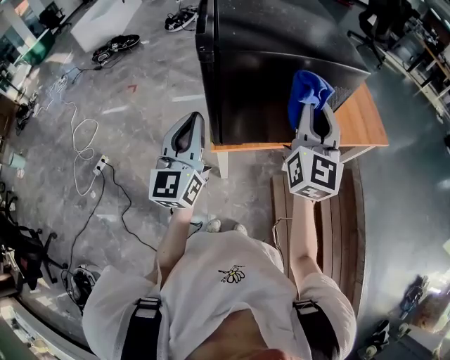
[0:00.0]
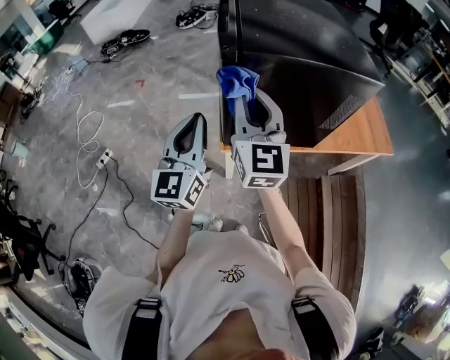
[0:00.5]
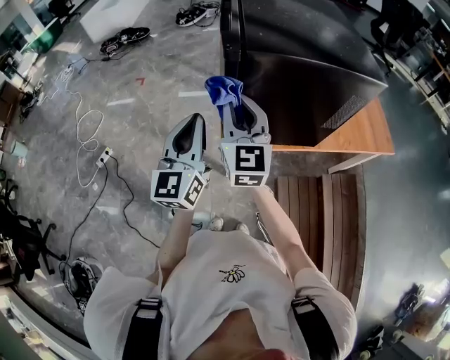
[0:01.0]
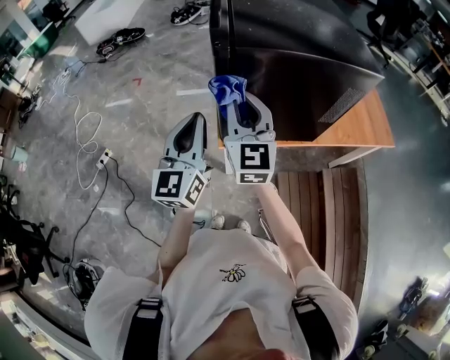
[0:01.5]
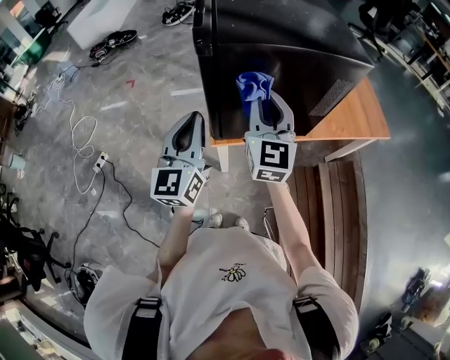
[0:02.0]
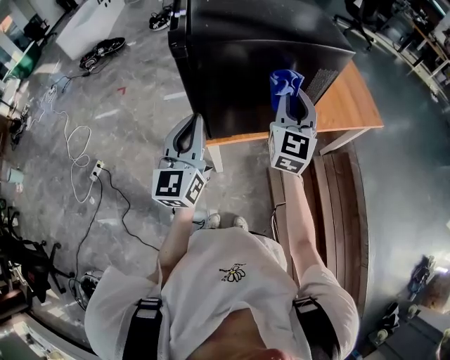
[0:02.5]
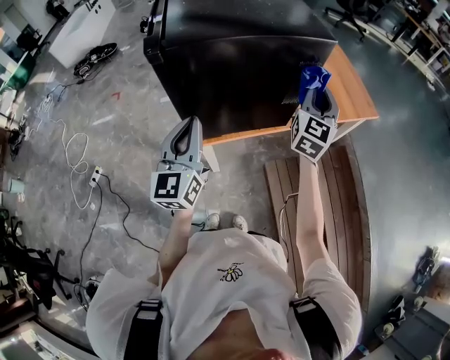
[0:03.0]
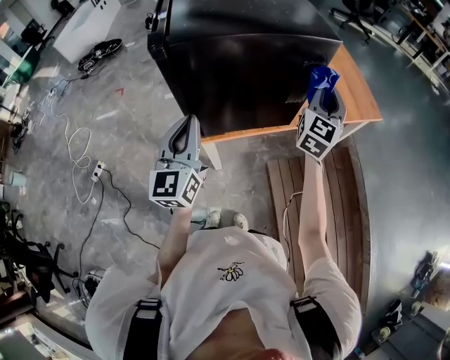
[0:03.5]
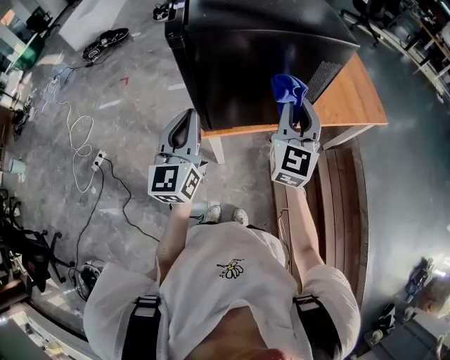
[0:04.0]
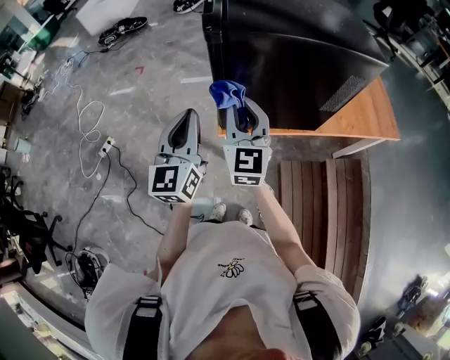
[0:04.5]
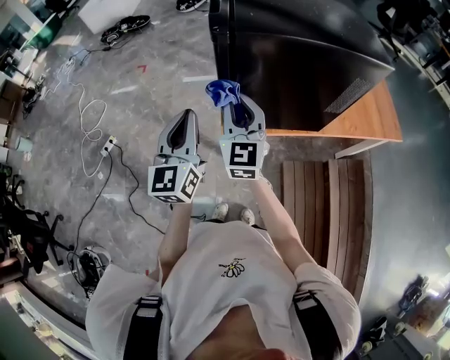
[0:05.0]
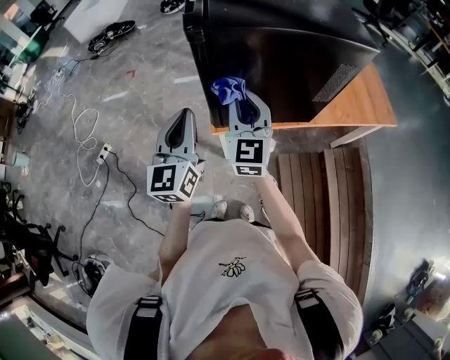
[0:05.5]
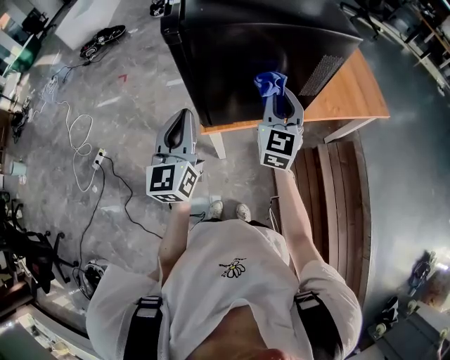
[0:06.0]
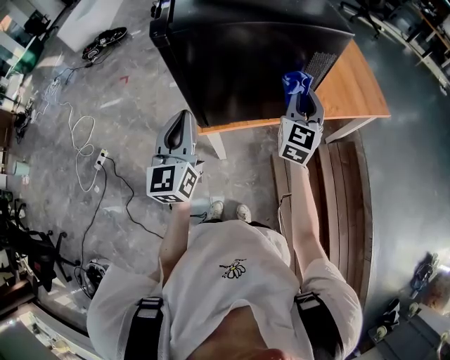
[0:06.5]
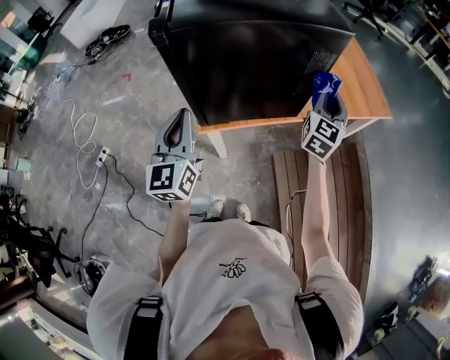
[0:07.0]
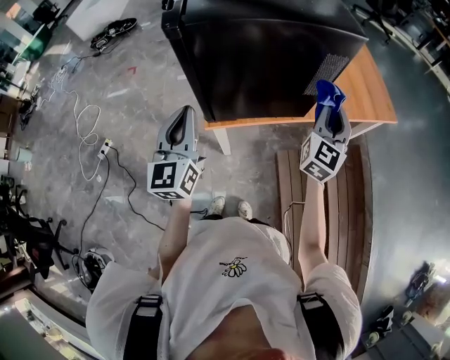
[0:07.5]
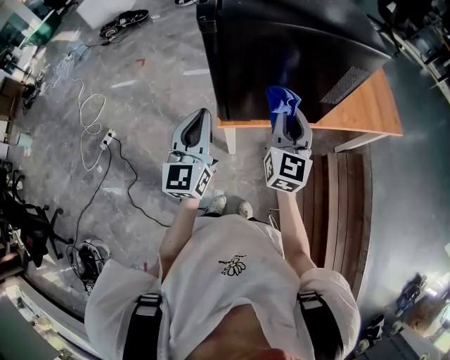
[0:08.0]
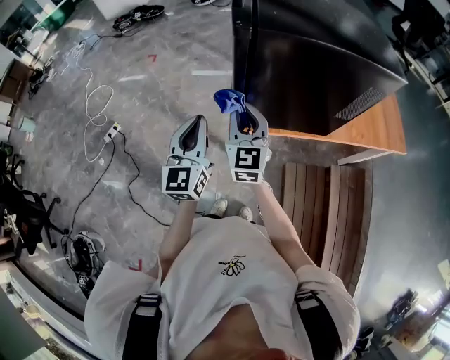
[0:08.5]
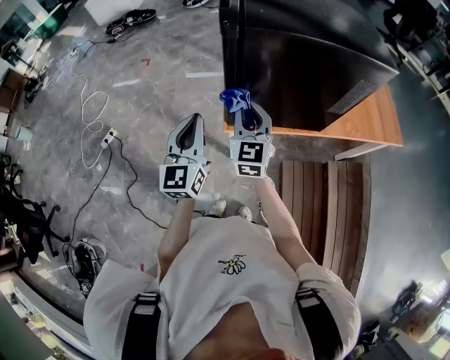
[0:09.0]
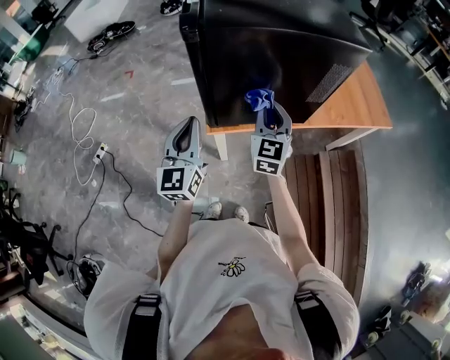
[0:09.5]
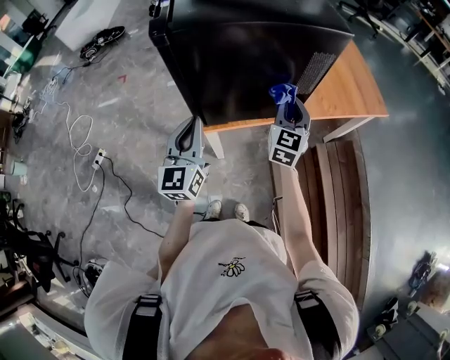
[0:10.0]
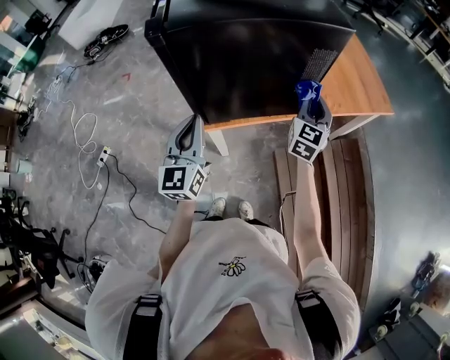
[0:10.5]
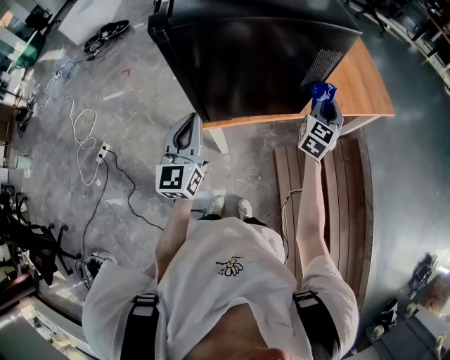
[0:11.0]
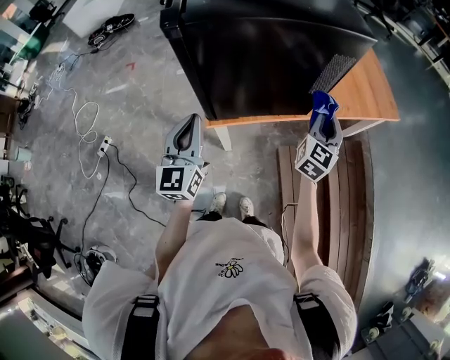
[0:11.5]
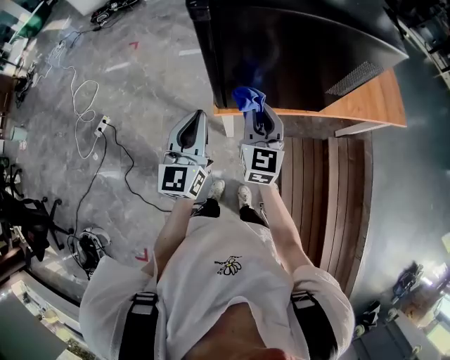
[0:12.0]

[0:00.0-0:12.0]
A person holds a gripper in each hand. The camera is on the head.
0:00.0 to 0:02.0: The right gripper is displaced to the left and downward by some 10 cm.
0:02.0 to 0:04.0: The right gripper heads to the right, covering about 15 cm.
0:04.0 to 0:06.0: The left gripper moves some 10 cm to the left and comes back; the right gripper goes to the left and returns, some 20 cm each way.
0:06.0 to 0:08.0: The right gripper moves roughly 20 cm to the right and comes back.
0:08.0 to 0:10.0: The left gripper ends up approximately 5 cm from where it was. The right gripper heads to the right, forward and downward, covering some 15 cm.
0:10.0 to 0:12.0: The right gripper shifts roughly 20 cm to the left and backward, and changes its angle by about 20 degrees. The left gripper moves approximately 5 cm.

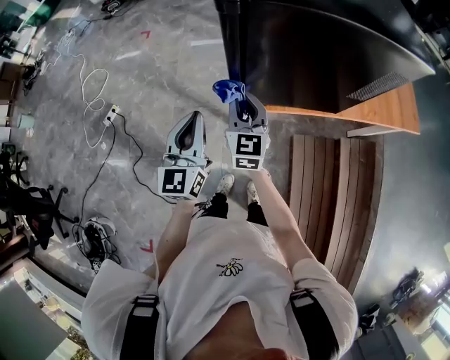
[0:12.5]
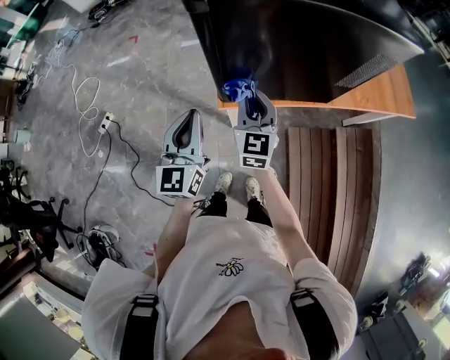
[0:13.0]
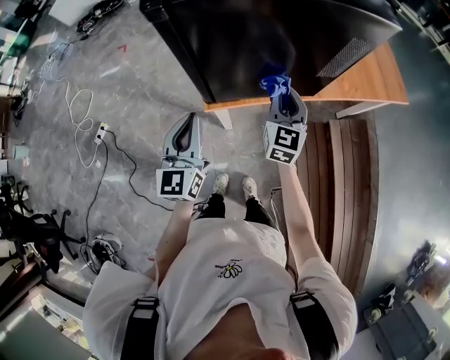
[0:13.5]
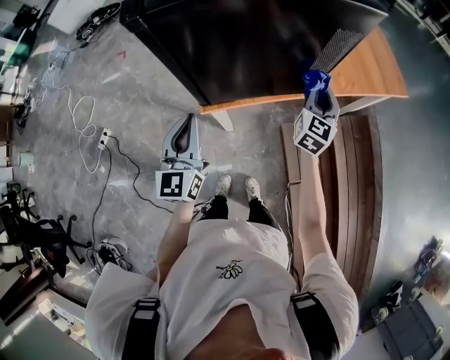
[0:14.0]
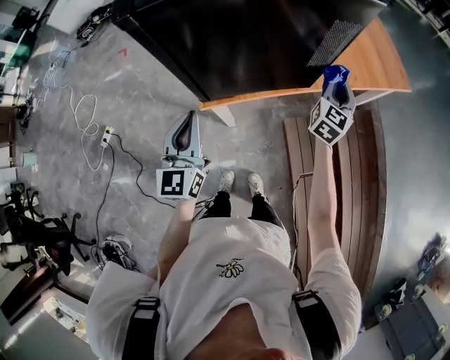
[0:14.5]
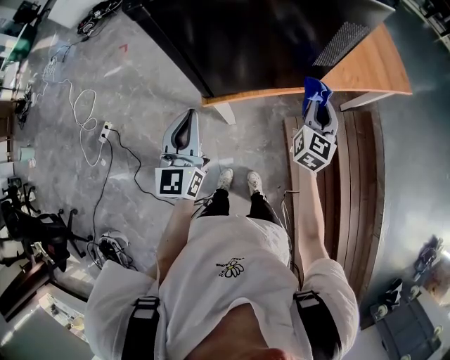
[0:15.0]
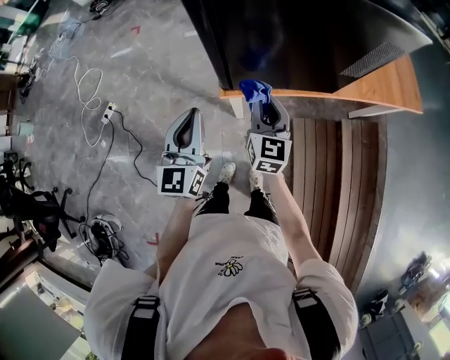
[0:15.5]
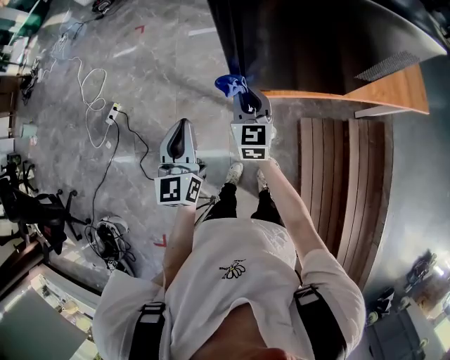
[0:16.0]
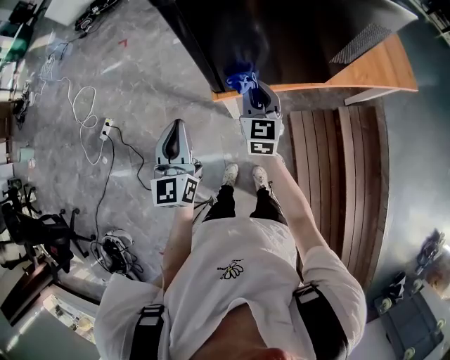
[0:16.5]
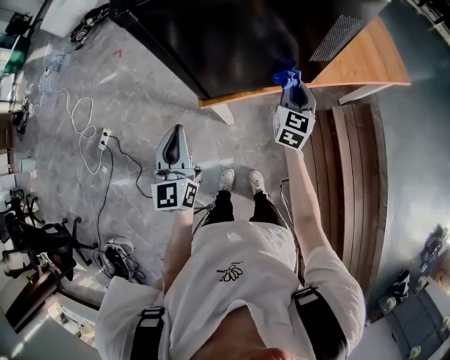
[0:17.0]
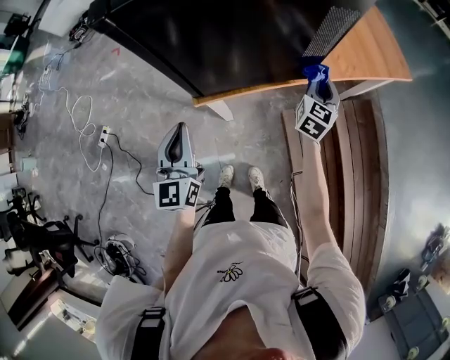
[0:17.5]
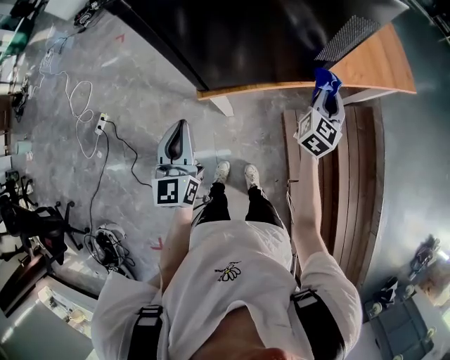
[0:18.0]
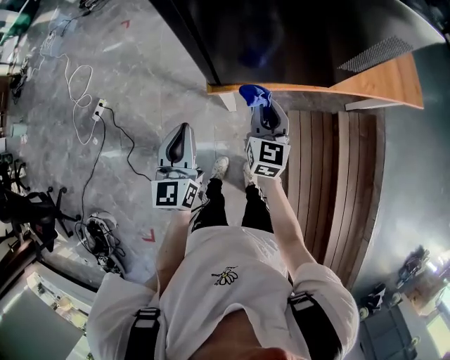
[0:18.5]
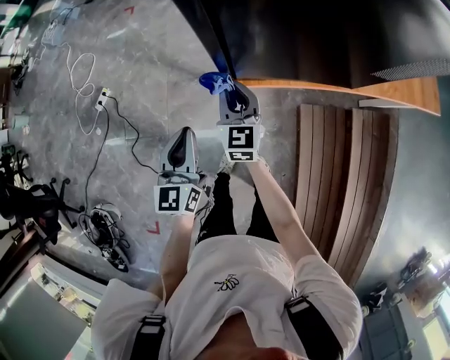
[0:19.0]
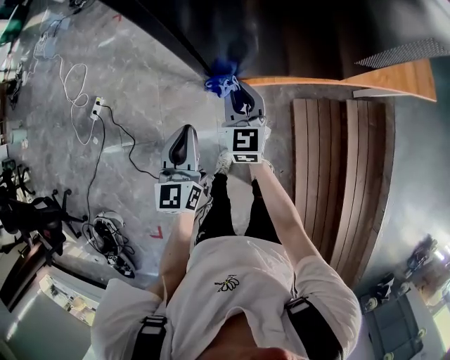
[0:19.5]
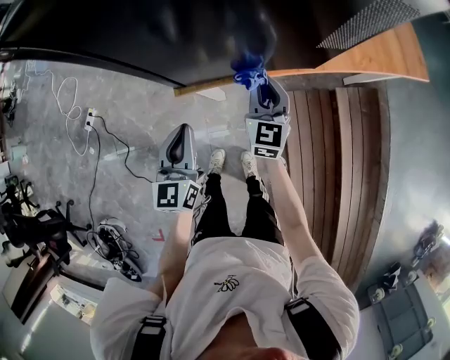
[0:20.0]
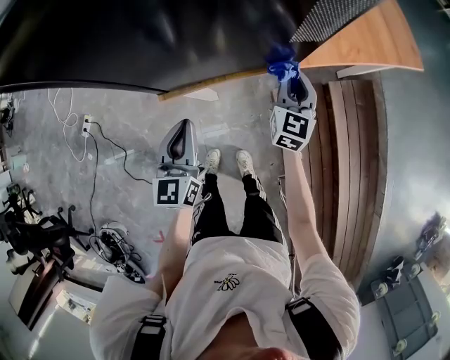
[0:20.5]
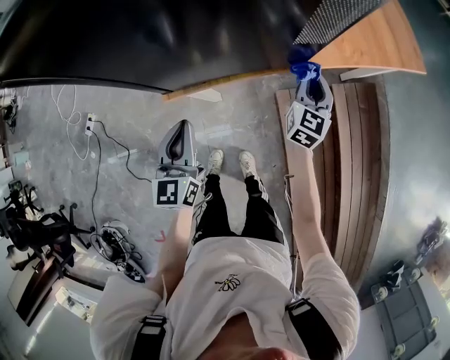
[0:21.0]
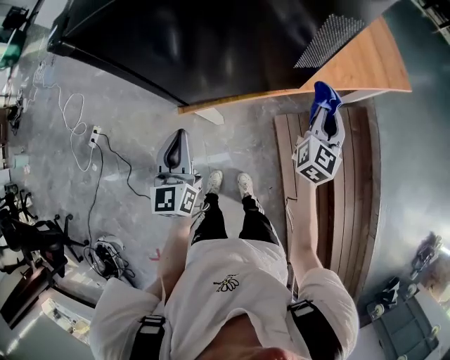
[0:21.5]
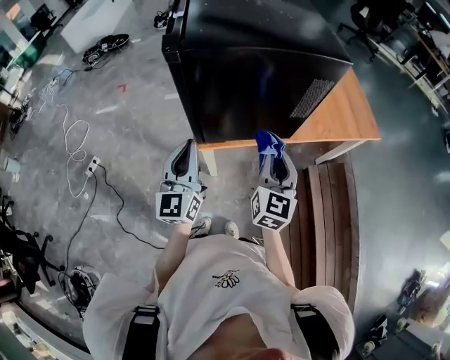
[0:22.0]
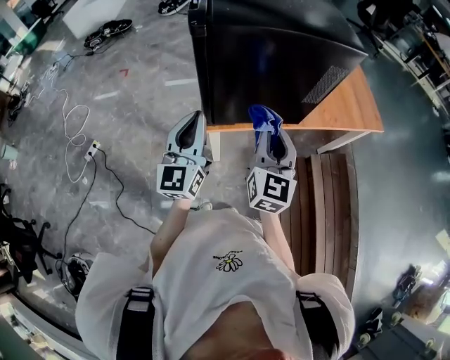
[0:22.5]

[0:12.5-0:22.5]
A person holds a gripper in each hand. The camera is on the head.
0:12.5 to 0:14.5: The left gripper shifts by some 10 cm; the right gripper moves about 40 cm, and rotates about 40 degrees.
0:14.5 to 0:16.5: The left gripper ends up about 10 cm from where it was; the right gripper shifts by about 30 cm, and rotates some 30 degrees.
0:16.5 to 0:18.5: The left gripper changes place by approximately 5 cm. The right gripper moves about 30 cm to the right and comes back.
0:18.5 to 0:20.5: The left gripper goes some 15 cm to the right and downward. Meanwhile the right gripper is displaced to the right by roughly 20 cm.
0:20.5 to 0:22.5: The right gripper is displaced upward, backward and to the left by roughly 35 cm, while the left gripper travels upward by about 20 cm, and swivels about 20 degrees.

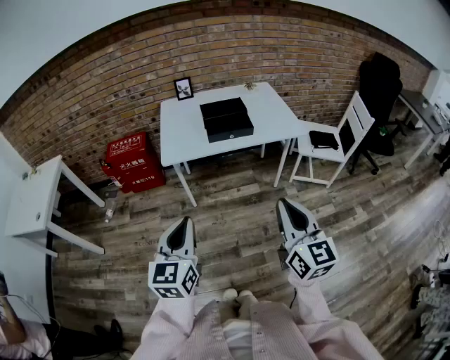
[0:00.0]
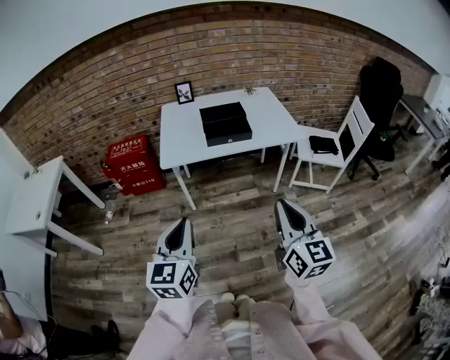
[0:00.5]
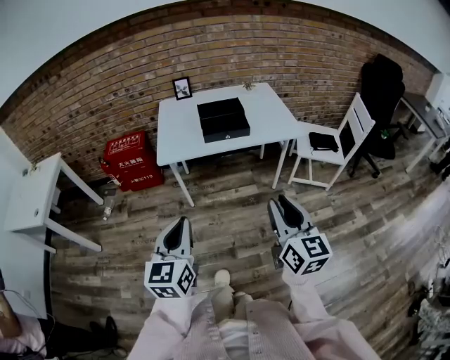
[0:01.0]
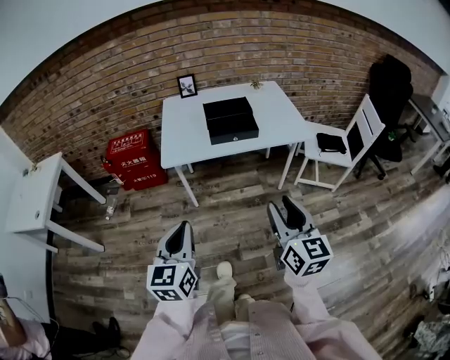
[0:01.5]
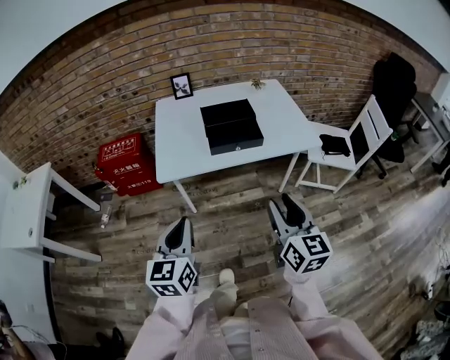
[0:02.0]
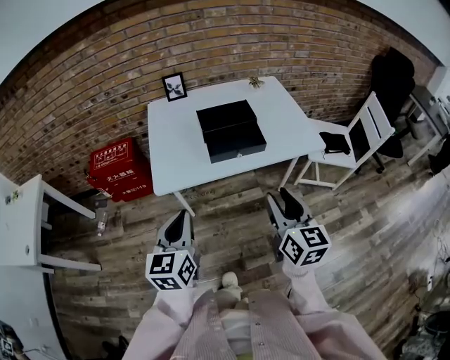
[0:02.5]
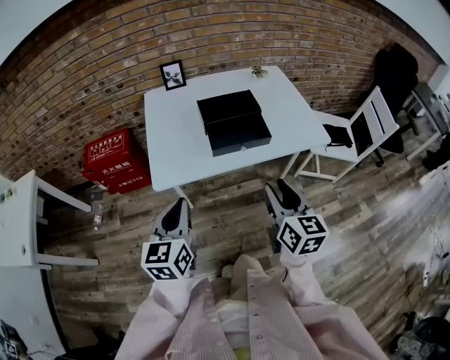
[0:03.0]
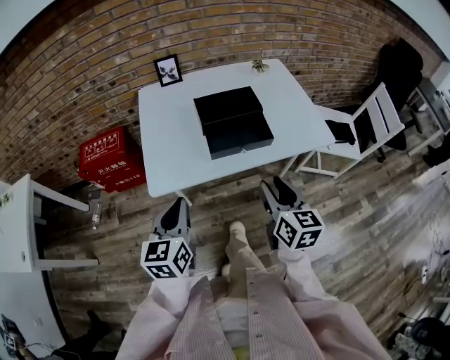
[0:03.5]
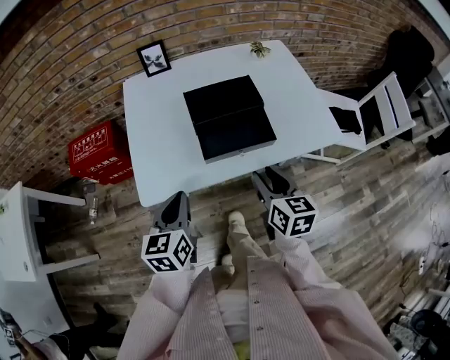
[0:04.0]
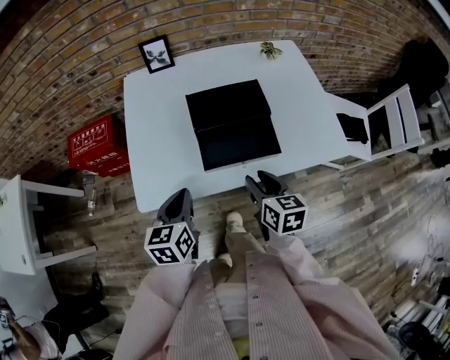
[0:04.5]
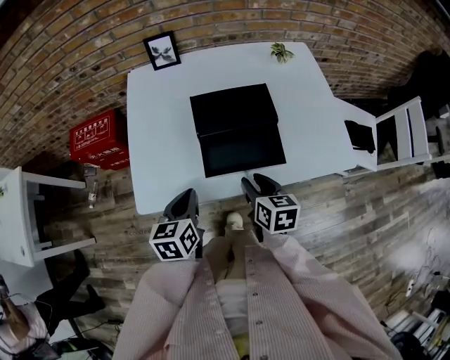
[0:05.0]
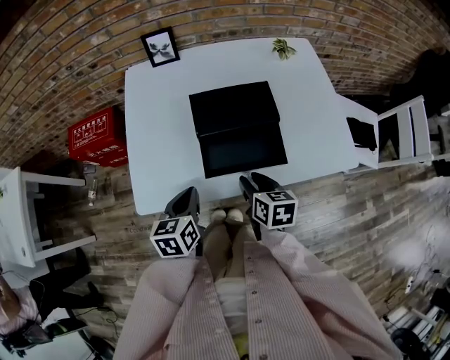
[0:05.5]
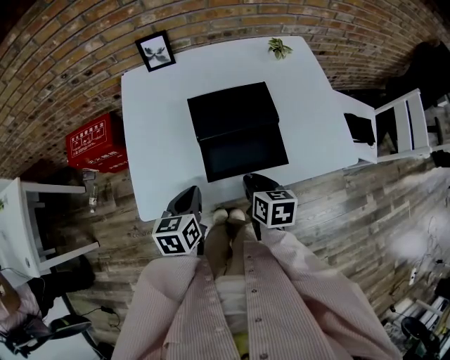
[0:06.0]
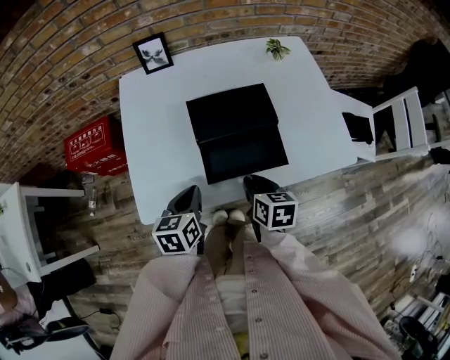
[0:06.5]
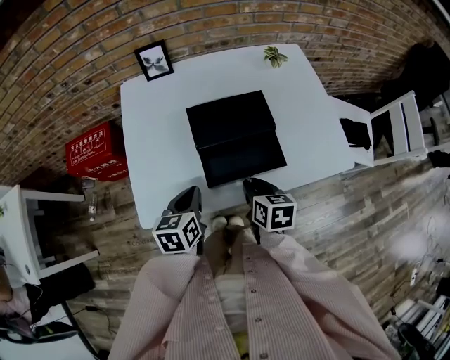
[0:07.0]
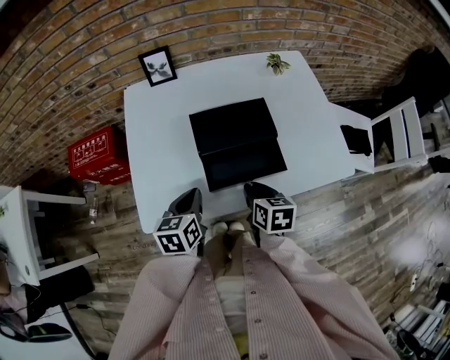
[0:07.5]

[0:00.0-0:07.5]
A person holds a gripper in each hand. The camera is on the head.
0:00.0 to 0:02.0: Both grippers move forward, about 15 cm. The right gripper opens up.
0:02.0 to 0:04.0: The right gripper is displaced forward and downward by about 30 cm, and turns by about 20 degrees. Meanwhile the left gripper goes roughly 25 cm forward.
0:04.0 to 0:05.5: Both grippers move downward and forward, roughly 10 cm.
0:05.5 to 0:07.5: The grippers move only a little.
